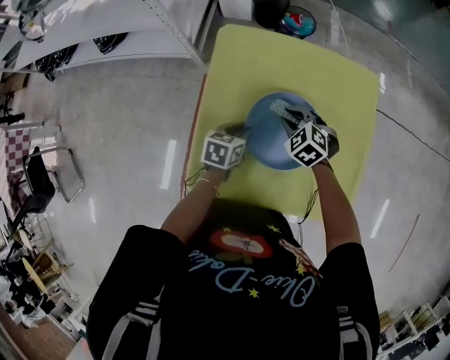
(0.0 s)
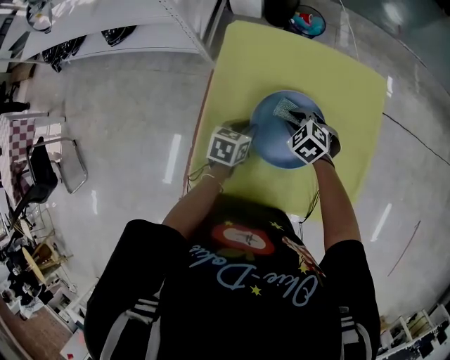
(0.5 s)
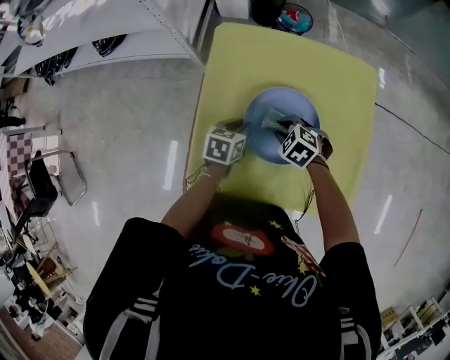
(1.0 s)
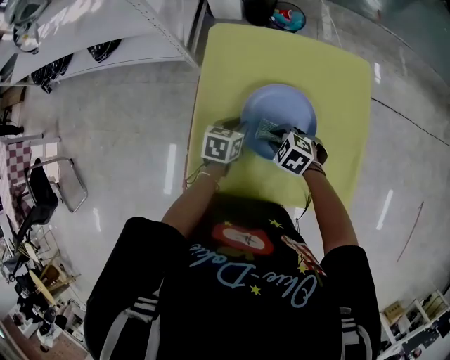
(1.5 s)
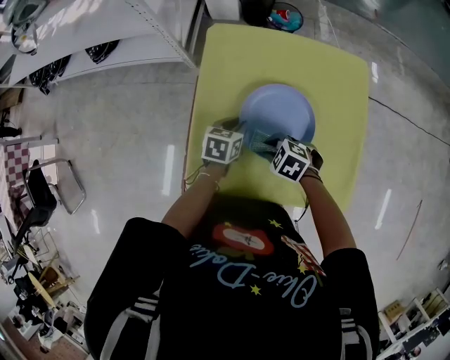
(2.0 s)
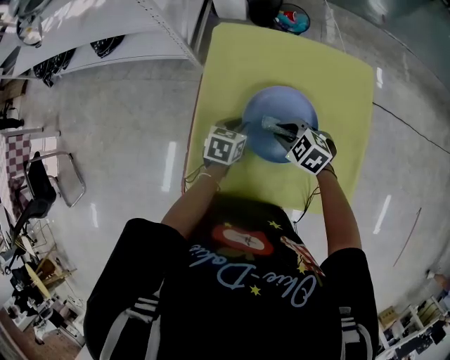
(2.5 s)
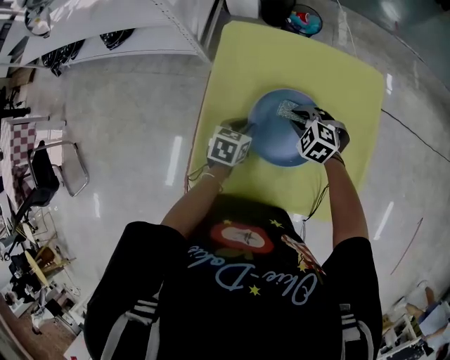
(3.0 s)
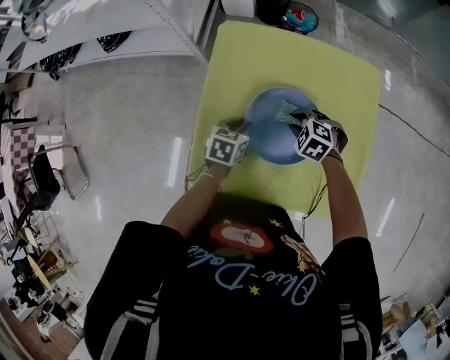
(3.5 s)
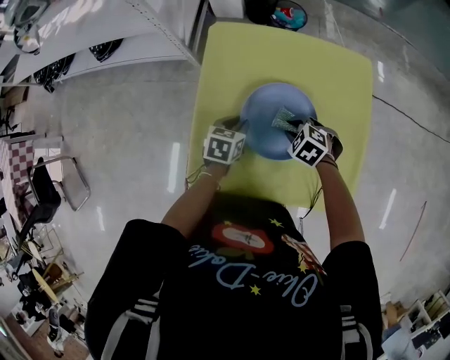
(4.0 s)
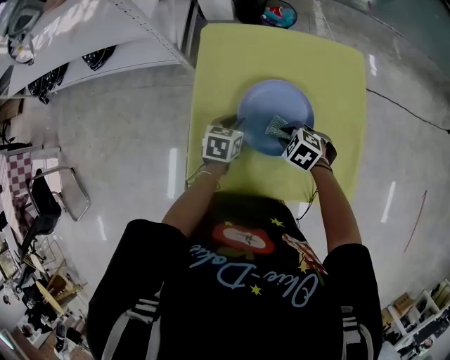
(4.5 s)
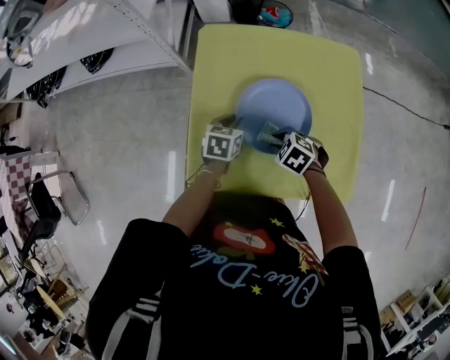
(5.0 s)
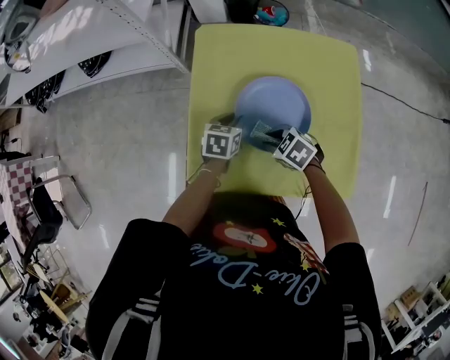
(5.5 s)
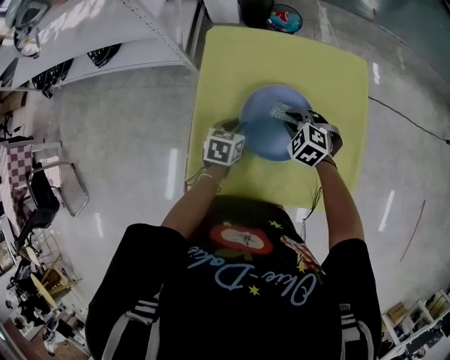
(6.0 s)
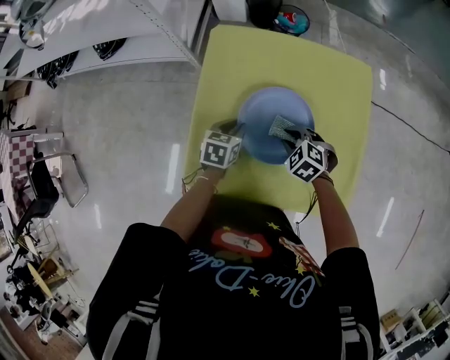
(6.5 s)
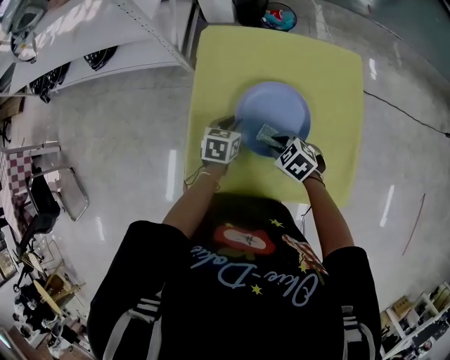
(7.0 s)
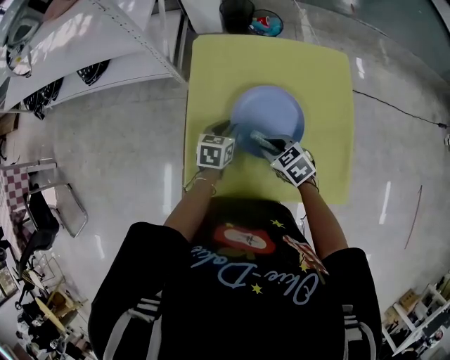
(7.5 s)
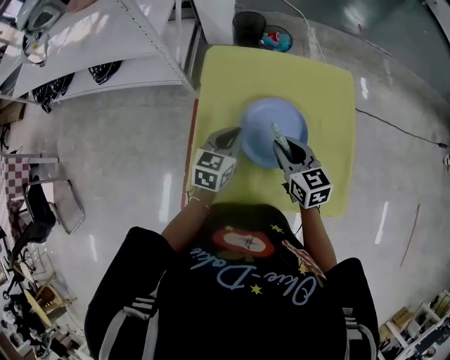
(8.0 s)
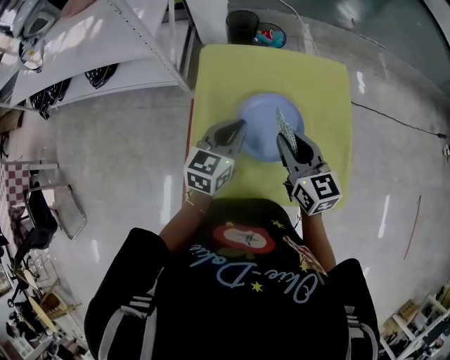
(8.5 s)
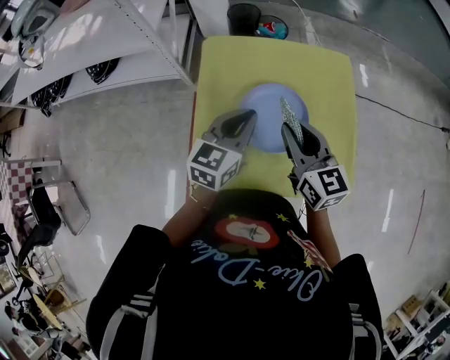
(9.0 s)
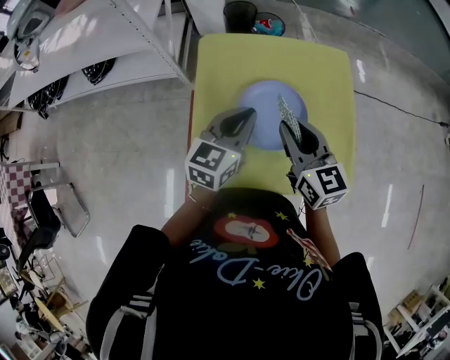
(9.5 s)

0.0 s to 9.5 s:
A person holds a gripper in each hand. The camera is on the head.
0.0 to 2.0 s: The right gripper moves backward, approximately 15 cm, and swivels some 20 degrees.
2.0 to 4.0 s: The right gripper goes about 10 cm to the right and forward.
4.0 to 5.5 s: The right gripper is displaced to the left and backward by about 10 cm, and rotates roughly 20 degrees.
5.5 to 7.5 s: The right gripper travels forward and back again, about 10 cm each way.
7.5 to 9.5 s: The grippers both shift upward by some 20 cm. The left gripper changes its angle by about 30 degrees, and closes up; the right gripper tips its fingers upward by some 40 degrees.

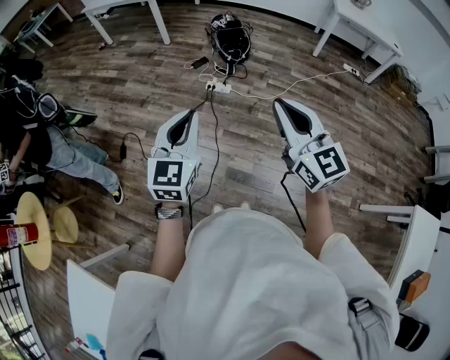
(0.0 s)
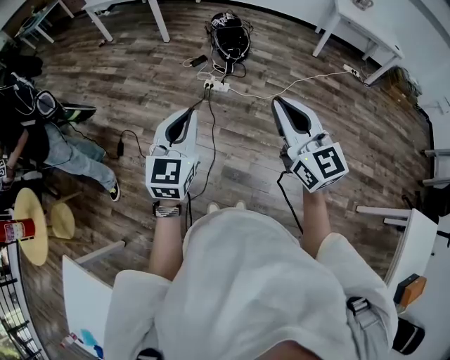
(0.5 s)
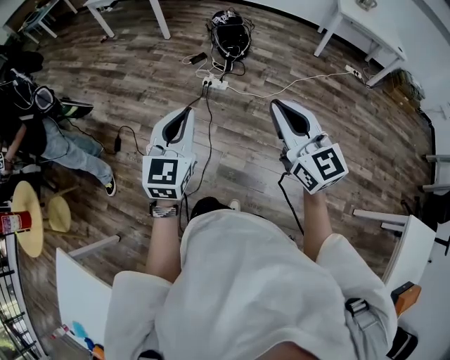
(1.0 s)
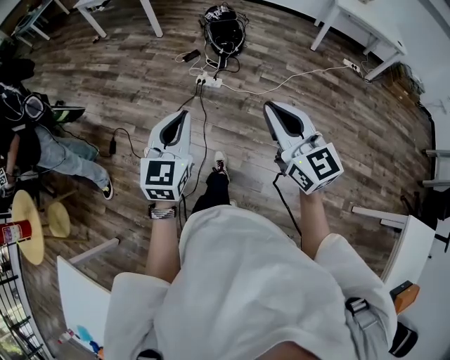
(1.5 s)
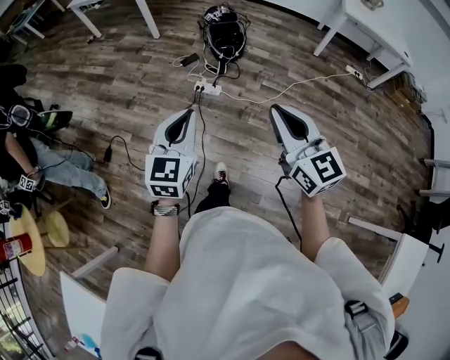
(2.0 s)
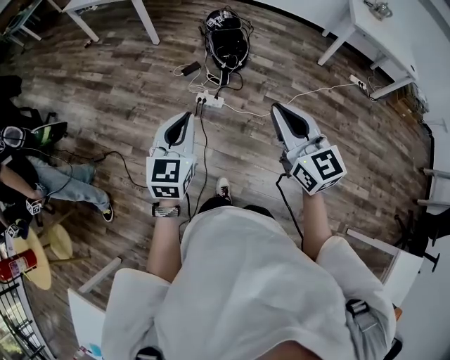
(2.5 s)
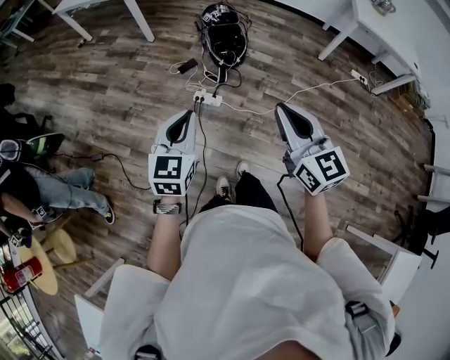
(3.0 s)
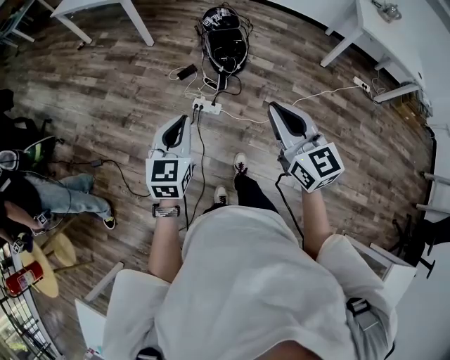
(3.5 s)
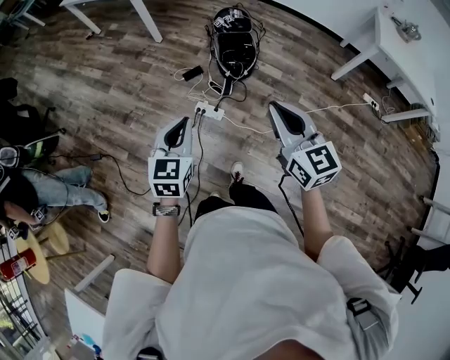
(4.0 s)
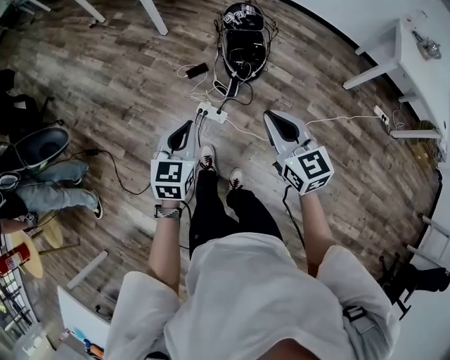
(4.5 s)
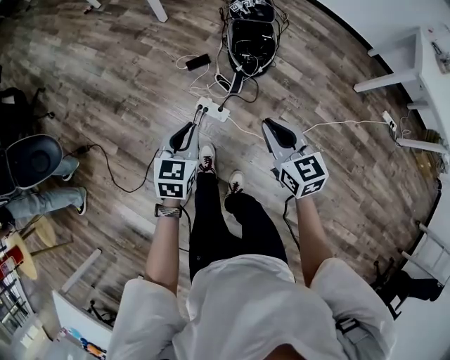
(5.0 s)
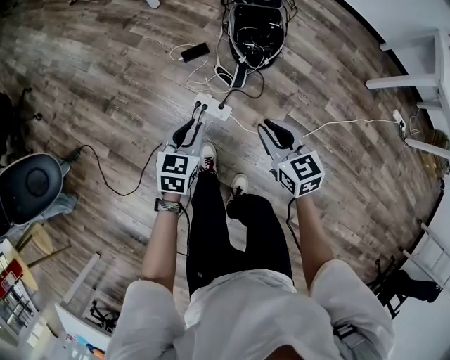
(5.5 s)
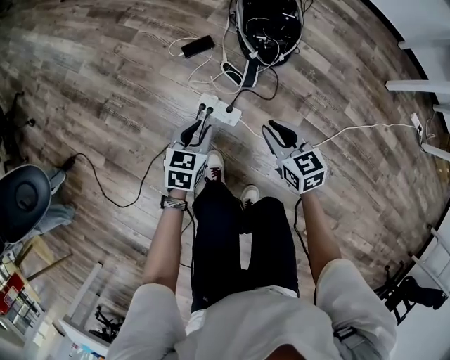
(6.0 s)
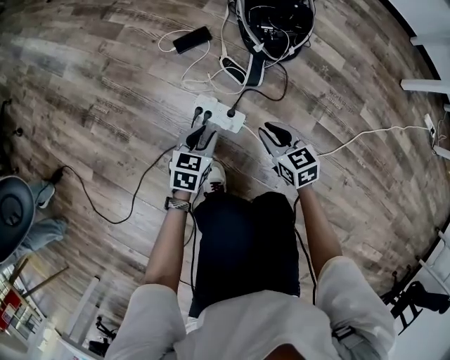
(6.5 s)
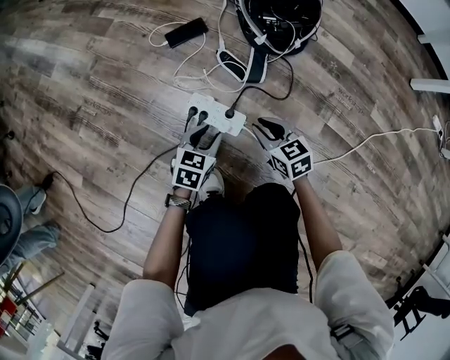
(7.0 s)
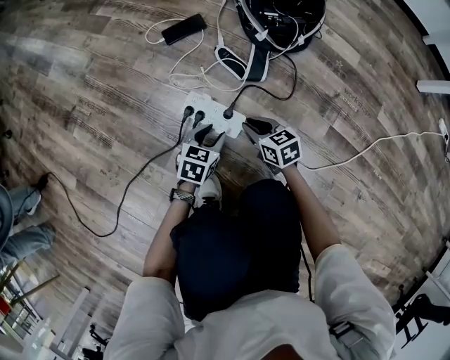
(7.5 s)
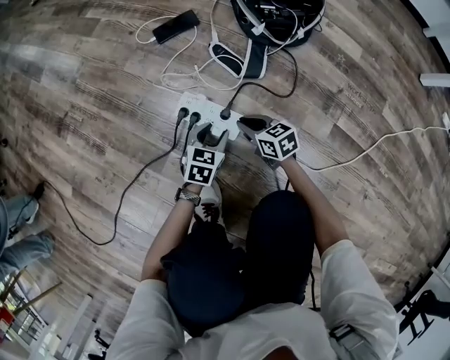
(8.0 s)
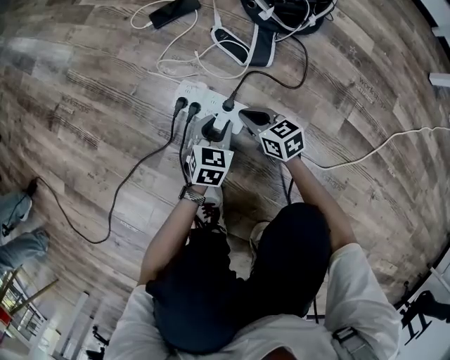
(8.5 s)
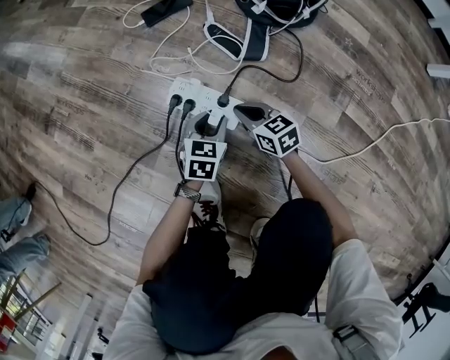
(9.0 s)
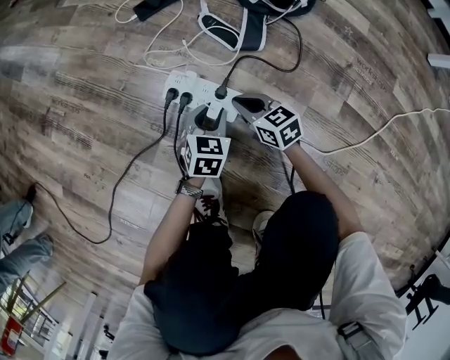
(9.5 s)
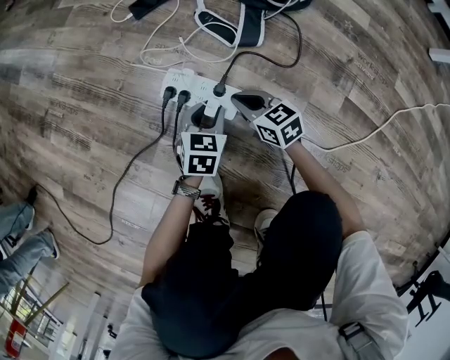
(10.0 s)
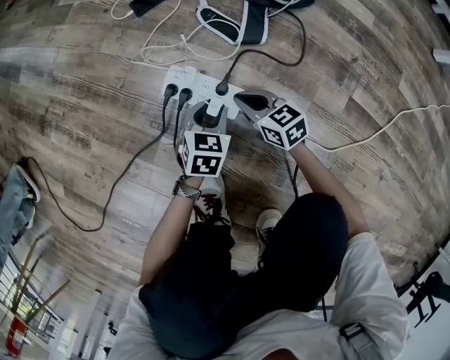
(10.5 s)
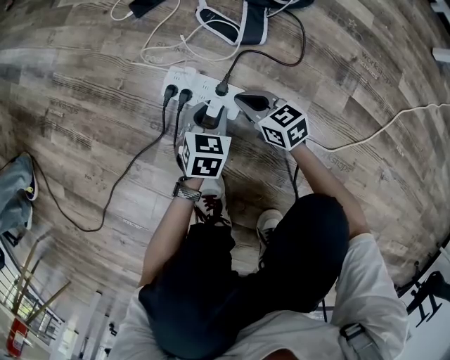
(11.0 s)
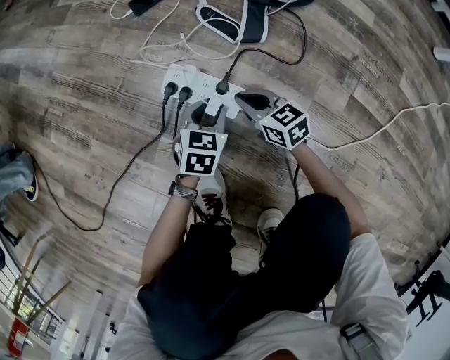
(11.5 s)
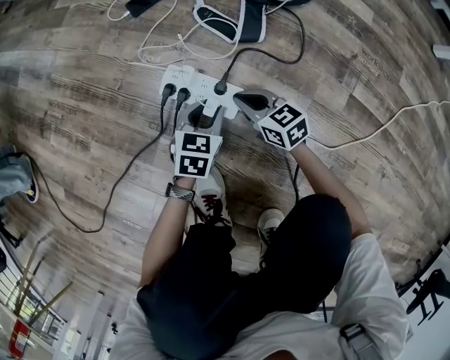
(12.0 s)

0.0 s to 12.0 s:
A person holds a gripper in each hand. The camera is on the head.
0.0 to 2.0 s: The grippers both shift forward and to the right by roughly 20 cm.
2.0 to 4.0 s: Both grippers travel together forward, about 35 cm.
4.0 to 6.0 s: The two grippers go some 60 cm downward. The left gripper rotates about 20 degrees, and opens. The right gripper rotates some 30 degrees.
6.0 to 8.0 s: The two grippers go some 40 cm downward.
8.0 to 12.0 s: There are only small adjustments of the grippers.

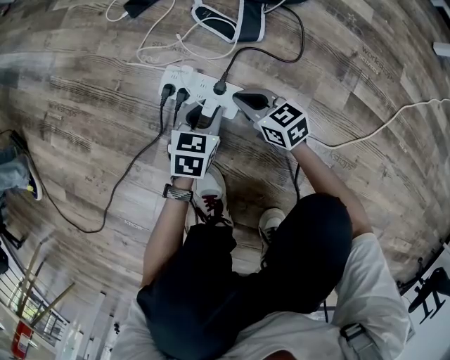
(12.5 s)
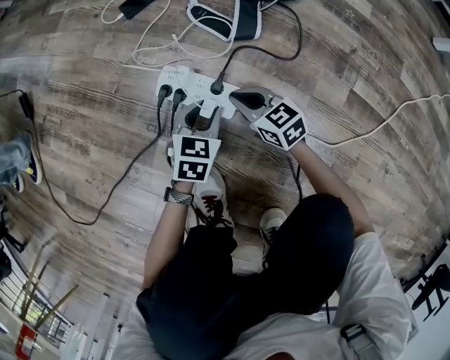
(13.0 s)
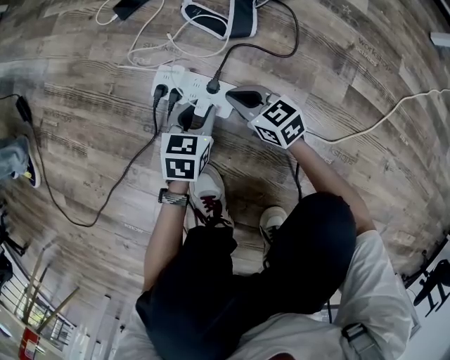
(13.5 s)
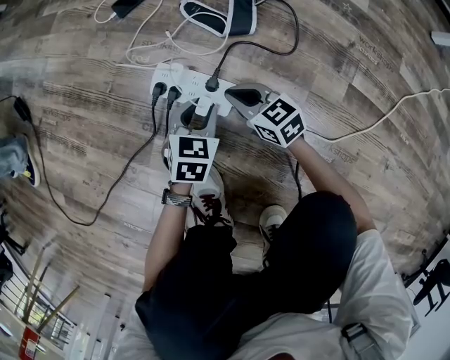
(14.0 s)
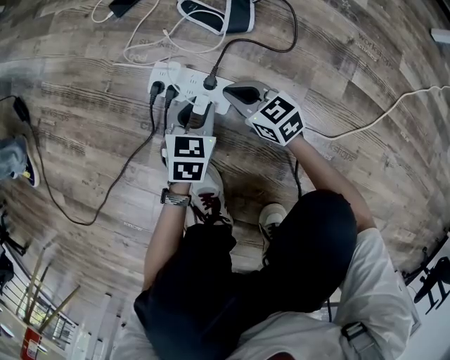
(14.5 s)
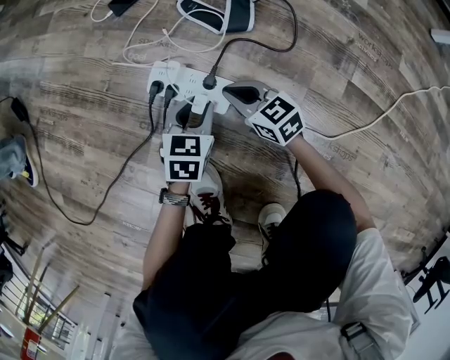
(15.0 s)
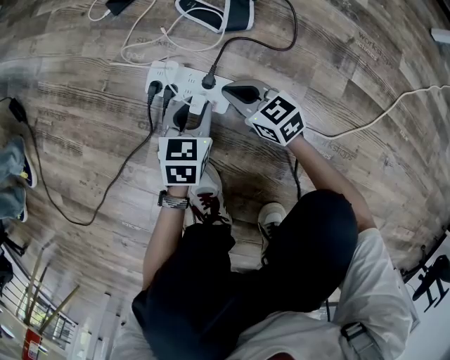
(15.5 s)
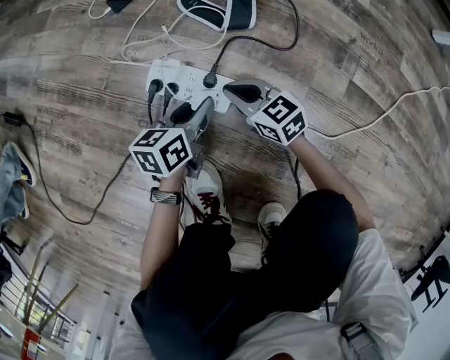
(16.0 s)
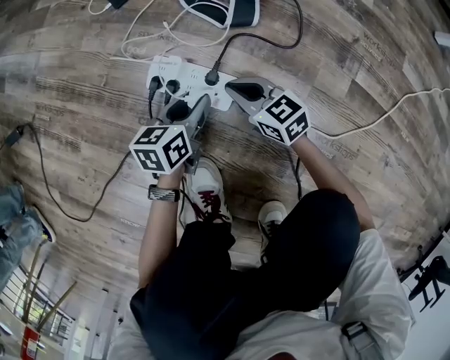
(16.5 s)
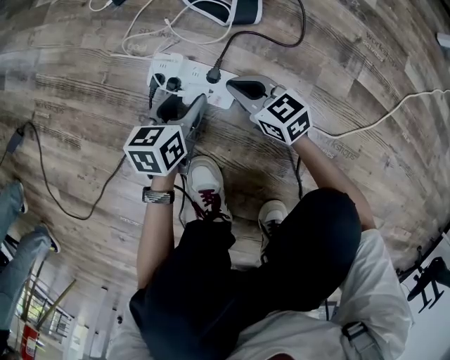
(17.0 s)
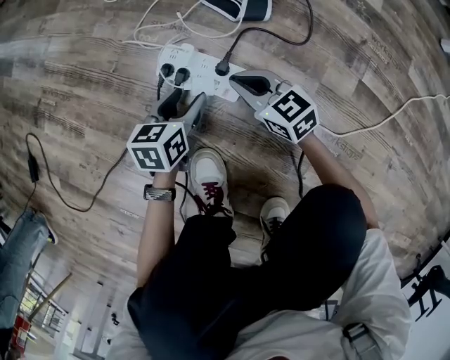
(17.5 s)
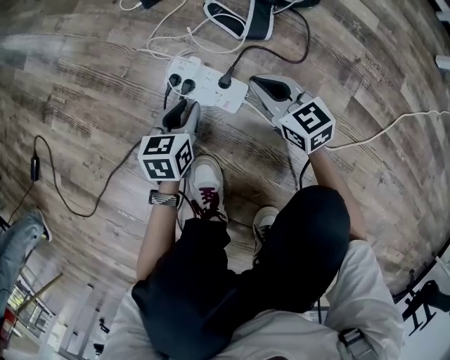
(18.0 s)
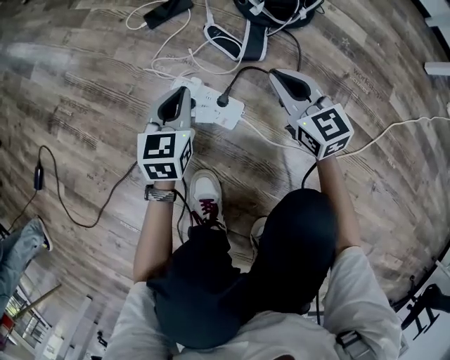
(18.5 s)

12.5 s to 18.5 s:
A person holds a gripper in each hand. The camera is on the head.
12.5 to 14.5 s: The grippers stay close to where they were, moving slightly.
14.5 to 16.5 s: The left gripper turns by some 30 degrees.
16.5 to 18.5 s: The left gripper goes about 15 cm upward and forward, rotates roughly 30 degrees, and closes its fingers. Meanwhile the right gripper goes some 20 cm upward and to the right, and swivels some 20 degrees.
